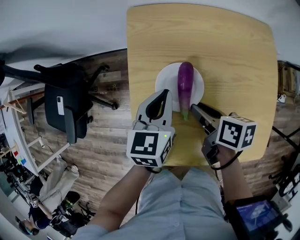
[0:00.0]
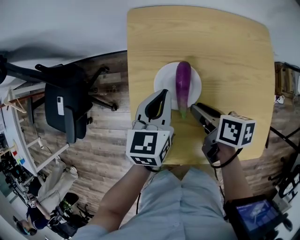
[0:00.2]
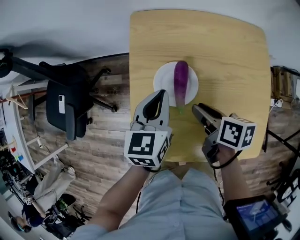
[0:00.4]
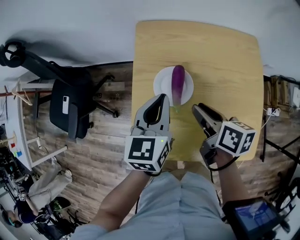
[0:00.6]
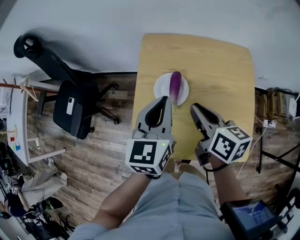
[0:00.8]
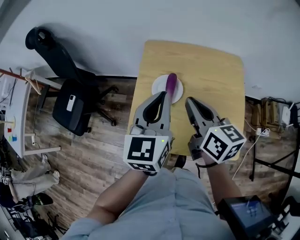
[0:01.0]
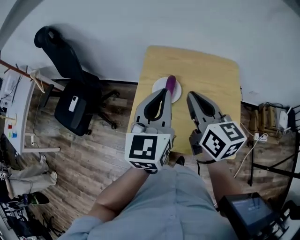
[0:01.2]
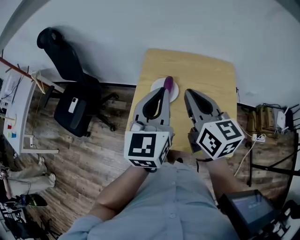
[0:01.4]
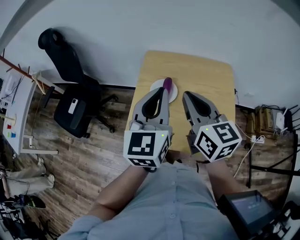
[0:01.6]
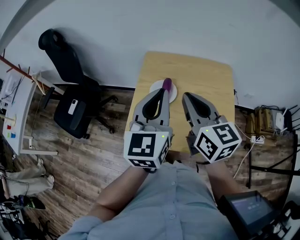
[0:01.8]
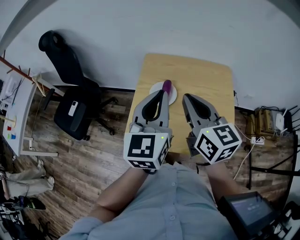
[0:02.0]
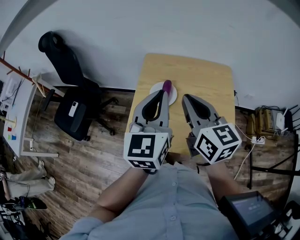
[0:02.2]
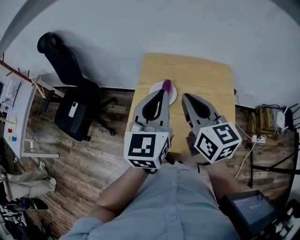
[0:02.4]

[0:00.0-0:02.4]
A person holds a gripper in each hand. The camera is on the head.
0:00.0 to 0:01.2: The left gripper is displaced upward by some 30 cm, and changes its angle by roughly 30 degrees.

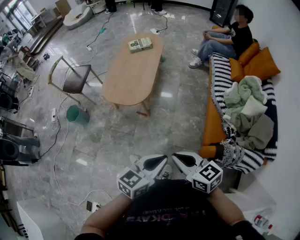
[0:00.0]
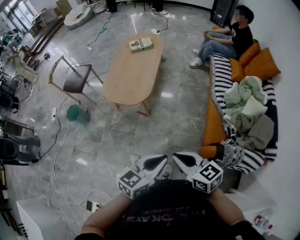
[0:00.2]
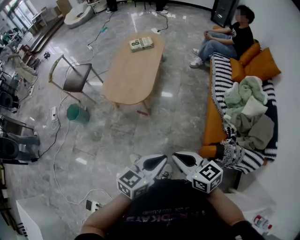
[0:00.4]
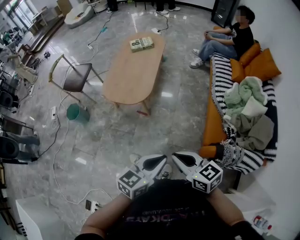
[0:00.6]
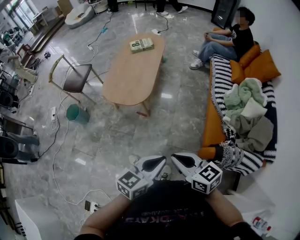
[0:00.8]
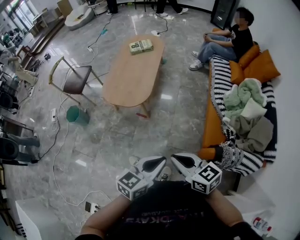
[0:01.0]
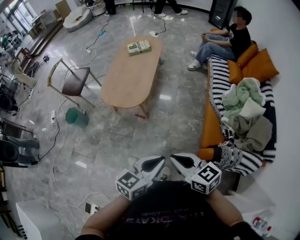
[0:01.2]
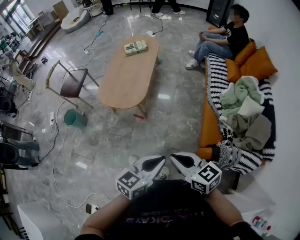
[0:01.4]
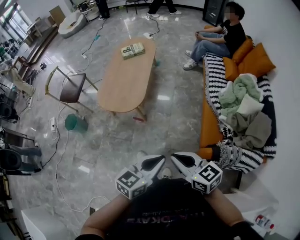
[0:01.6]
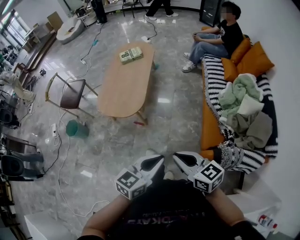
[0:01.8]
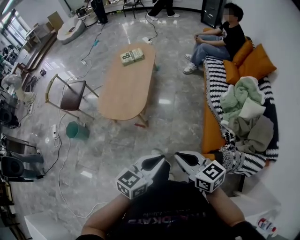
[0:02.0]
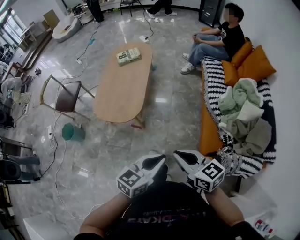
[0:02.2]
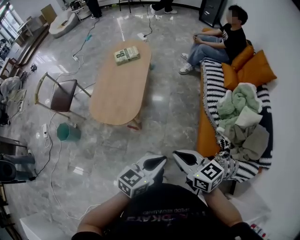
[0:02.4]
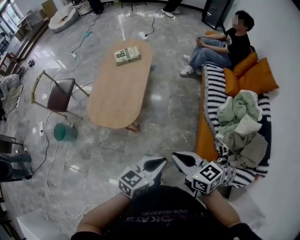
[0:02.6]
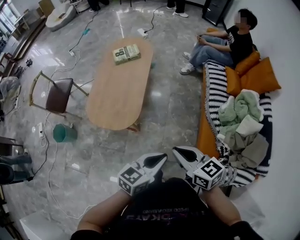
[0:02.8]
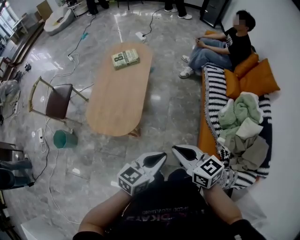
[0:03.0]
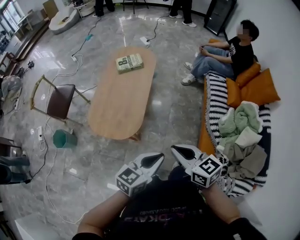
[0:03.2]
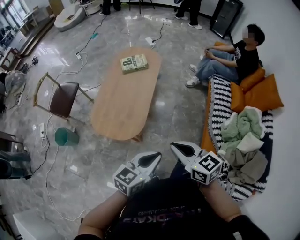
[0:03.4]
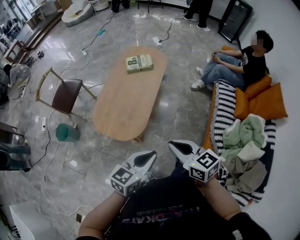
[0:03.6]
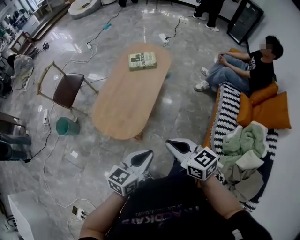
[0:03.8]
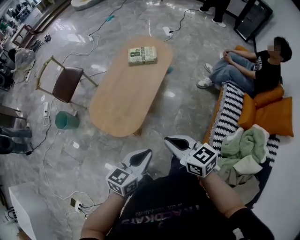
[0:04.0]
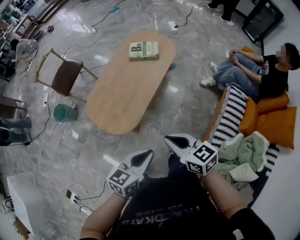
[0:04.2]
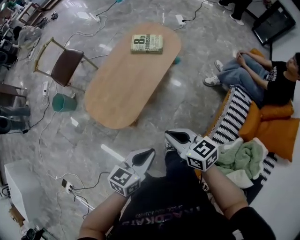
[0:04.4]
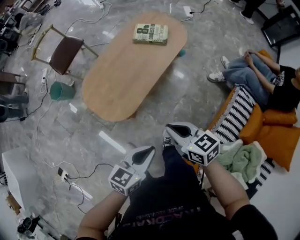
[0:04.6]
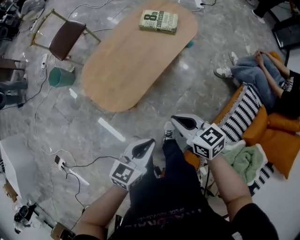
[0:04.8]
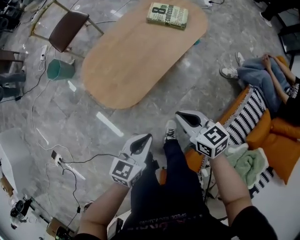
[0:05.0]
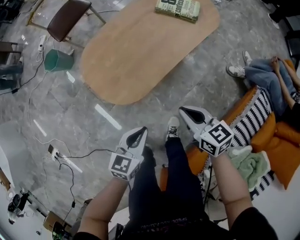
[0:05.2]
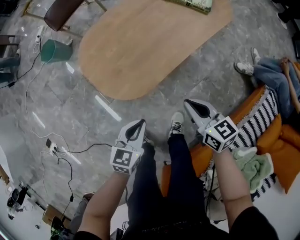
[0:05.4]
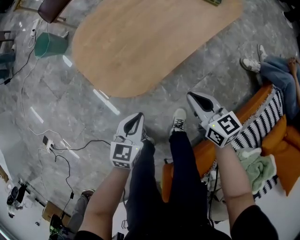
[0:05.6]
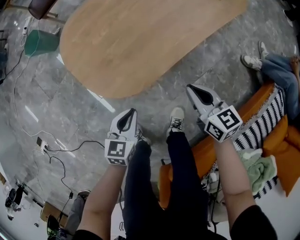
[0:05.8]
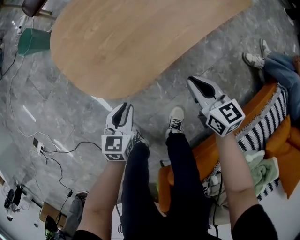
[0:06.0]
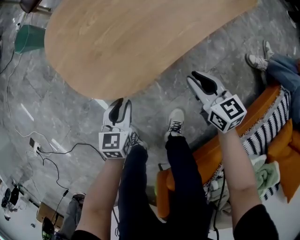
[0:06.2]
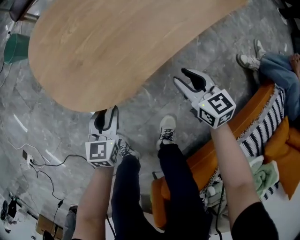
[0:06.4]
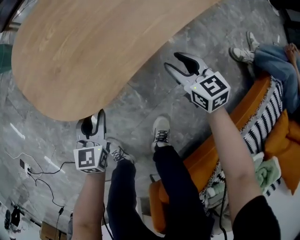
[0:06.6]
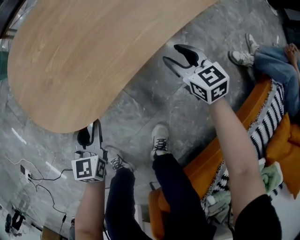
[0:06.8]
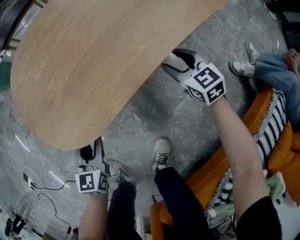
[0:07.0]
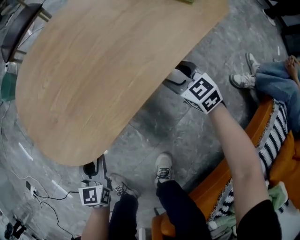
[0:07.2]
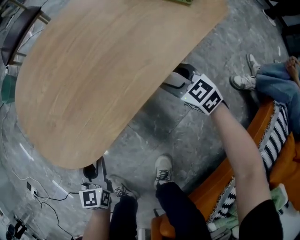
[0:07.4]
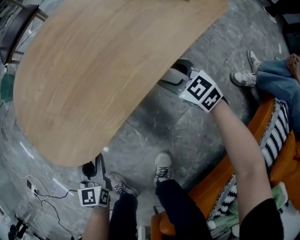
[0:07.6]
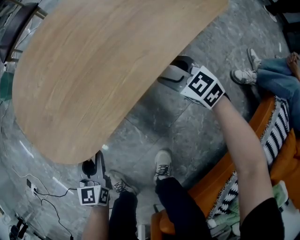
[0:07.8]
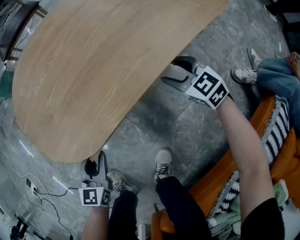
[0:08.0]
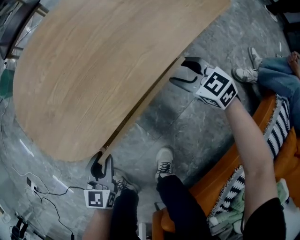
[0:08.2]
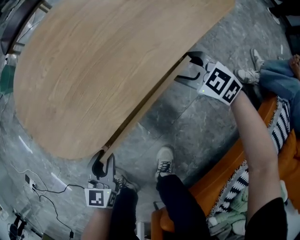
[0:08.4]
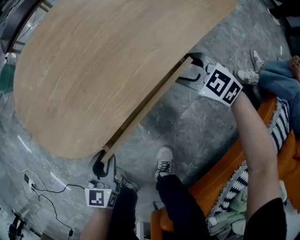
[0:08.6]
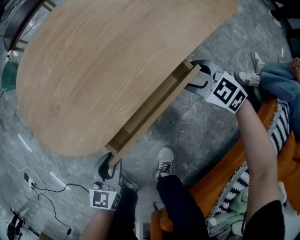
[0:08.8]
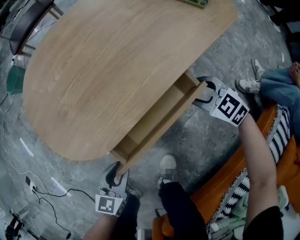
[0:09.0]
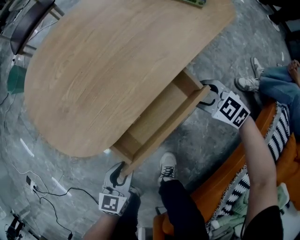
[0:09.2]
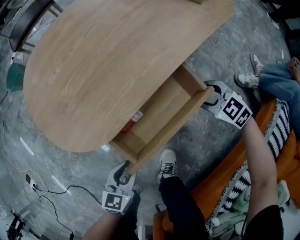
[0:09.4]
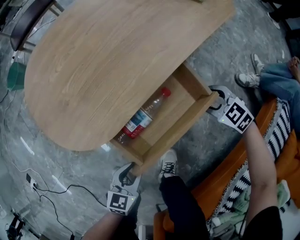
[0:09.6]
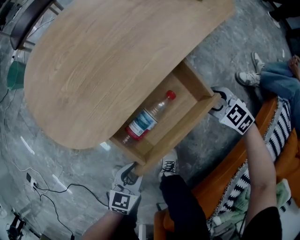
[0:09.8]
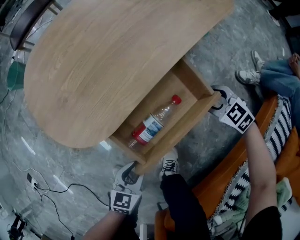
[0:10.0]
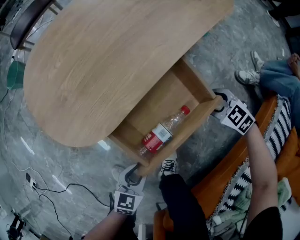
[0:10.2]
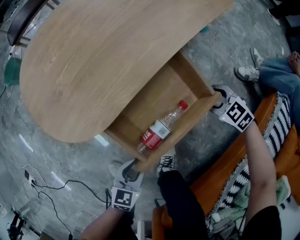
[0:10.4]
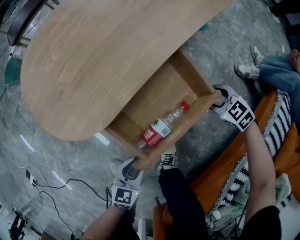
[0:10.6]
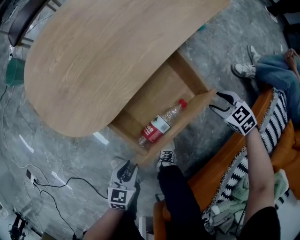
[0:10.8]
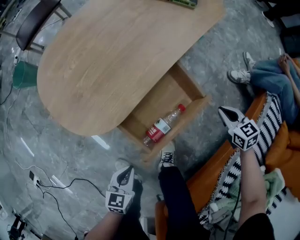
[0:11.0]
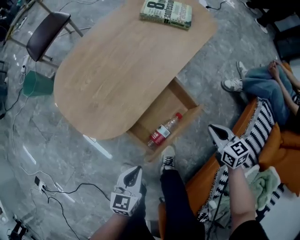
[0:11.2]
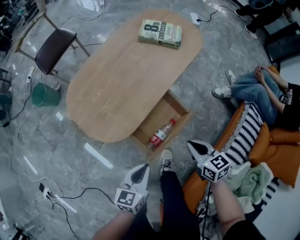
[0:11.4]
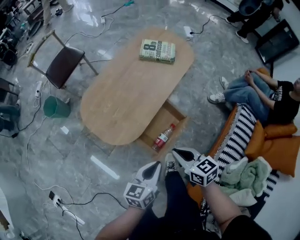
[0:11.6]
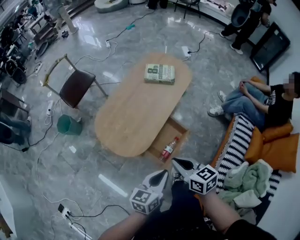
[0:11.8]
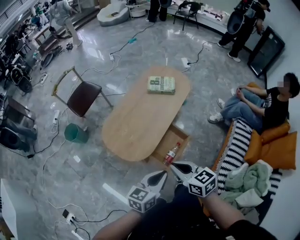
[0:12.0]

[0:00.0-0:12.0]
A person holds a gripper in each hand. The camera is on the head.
0:00.0 to 0:01.6: The grippers move only a little.
0:01.6 to 0:03.0: The two grippers go approximately 30 cm forward.
0:03.0 to 0:04.4: The right gripper ends up approximately 30 cm from where it was, and changes its angle by roughly 30 degrees. The left gripper moves approximately 25 cm, and swivels approximately 30 degrees.
0:04.4 to 0:06.0: The grippers both shift downward by about 50 cm. The left gripper turns by roughly 40 degrees.
0:06.0 to 0:07.6: The right gripper is displaced downward, forward and to the right by approximately 25 cm, changes its angle by about 30 degrees, and opens up, while the left gripper heads downward, covering approximately 5 cm.
0:07.6 to 0:09.0: The grippers both shift backward by roughly 10 cm.
0:09.0 to 0:10.4: The left gripper shifts about 10 cm backward. The right gripper travels backward and to the right by roughly 10 cm.
0:10.4 to 0:12.0: The right gripper shifts about 70 cm upward and to the left, rotates some 50 degrees, and closes its fingers; the left gripper travels upward by roughly 60 cm, changes its angle by roughly 20 degrees, and closes its fingers.

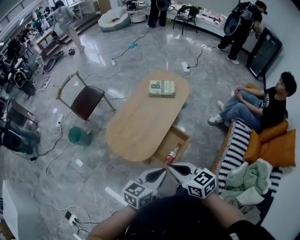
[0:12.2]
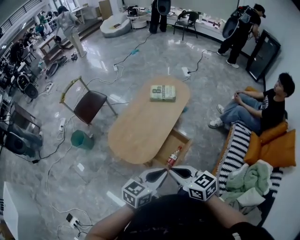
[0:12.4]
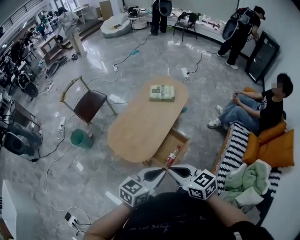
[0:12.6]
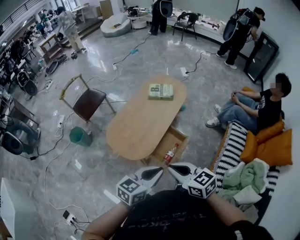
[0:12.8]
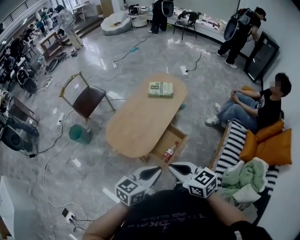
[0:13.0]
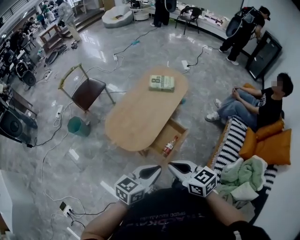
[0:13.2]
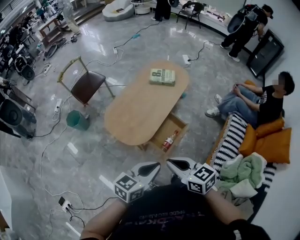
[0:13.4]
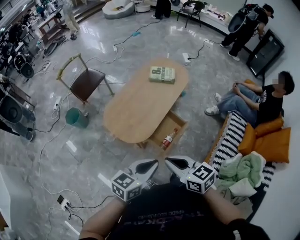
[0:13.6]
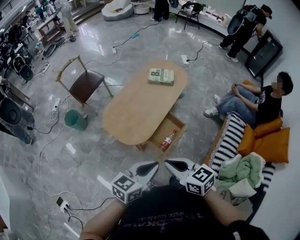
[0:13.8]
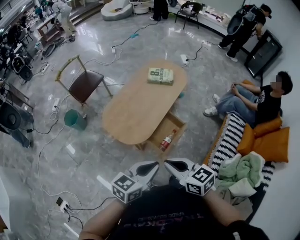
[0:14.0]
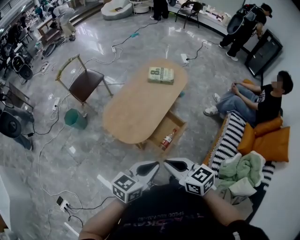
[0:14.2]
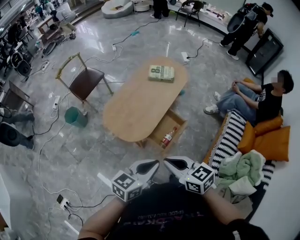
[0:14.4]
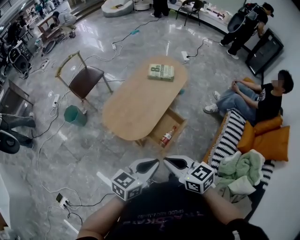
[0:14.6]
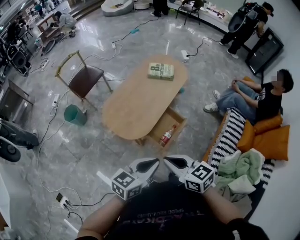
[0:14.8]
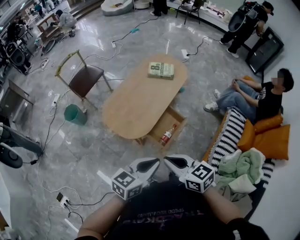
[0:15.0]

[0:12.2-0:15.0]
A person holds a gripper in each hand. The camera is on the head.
0:12.2 to 0:13.6: Both grippers move backward, about 5 cm.
0:13.6 to 0:15.0: The grippers make only small movements.

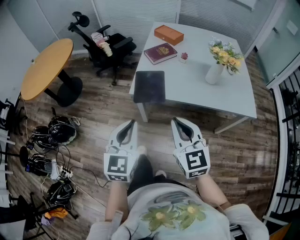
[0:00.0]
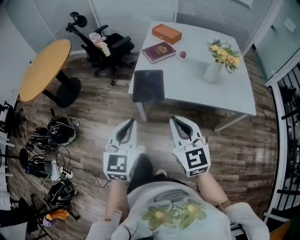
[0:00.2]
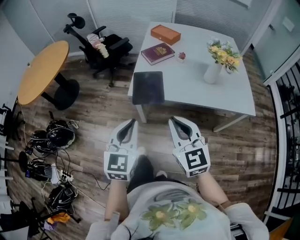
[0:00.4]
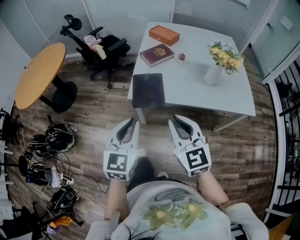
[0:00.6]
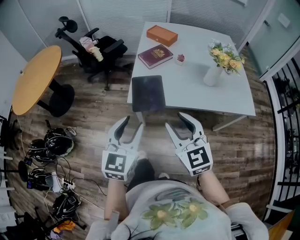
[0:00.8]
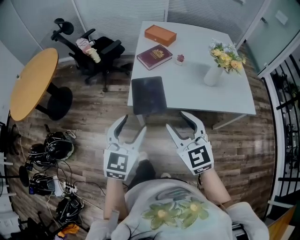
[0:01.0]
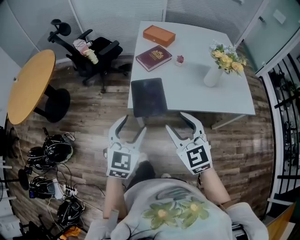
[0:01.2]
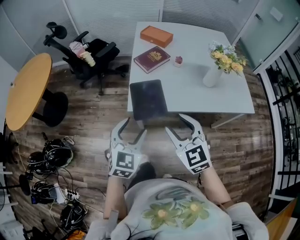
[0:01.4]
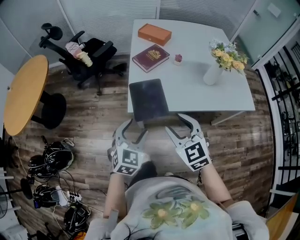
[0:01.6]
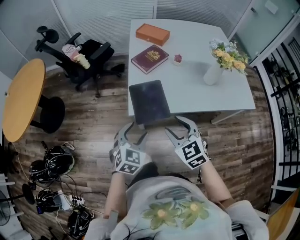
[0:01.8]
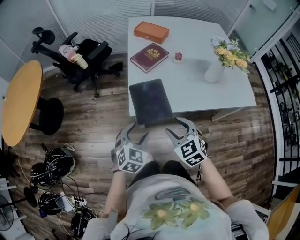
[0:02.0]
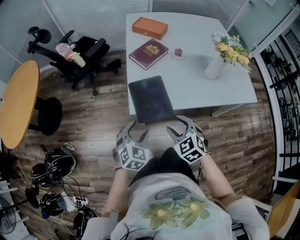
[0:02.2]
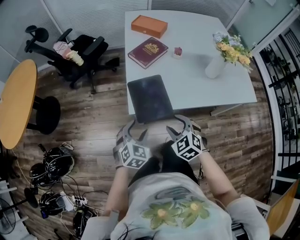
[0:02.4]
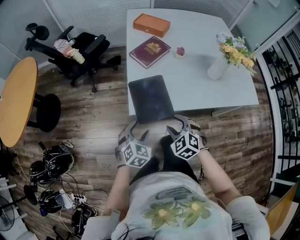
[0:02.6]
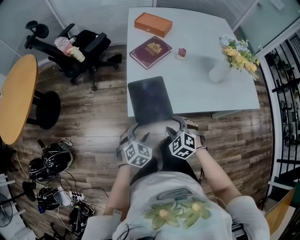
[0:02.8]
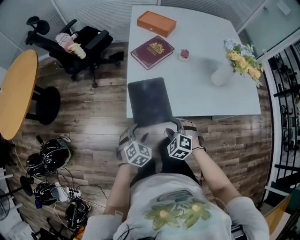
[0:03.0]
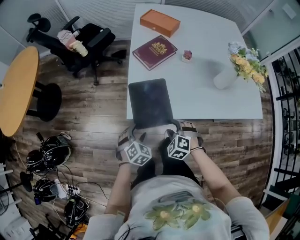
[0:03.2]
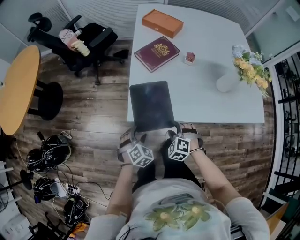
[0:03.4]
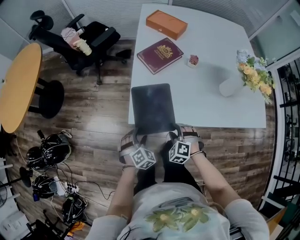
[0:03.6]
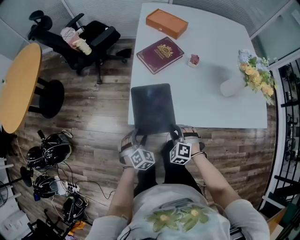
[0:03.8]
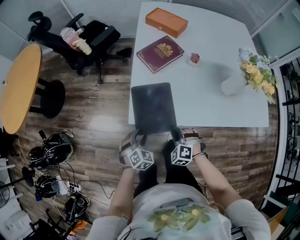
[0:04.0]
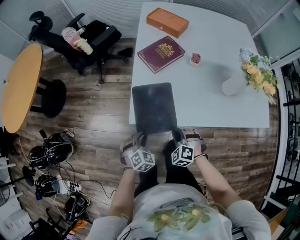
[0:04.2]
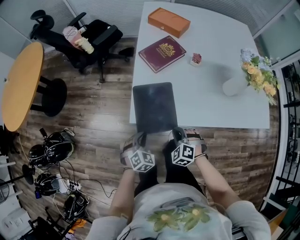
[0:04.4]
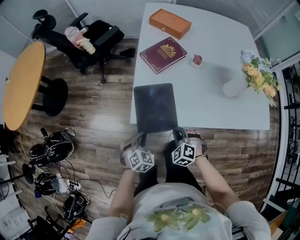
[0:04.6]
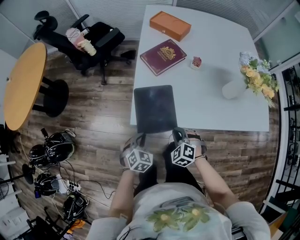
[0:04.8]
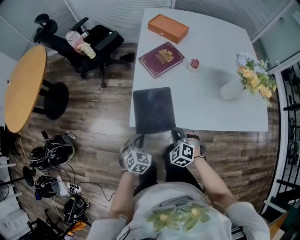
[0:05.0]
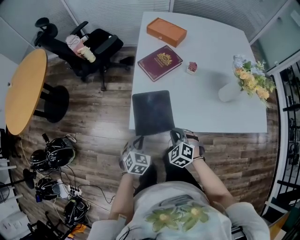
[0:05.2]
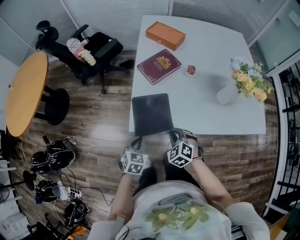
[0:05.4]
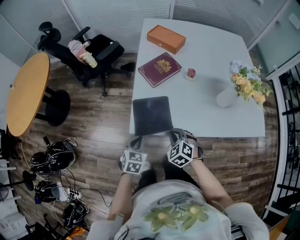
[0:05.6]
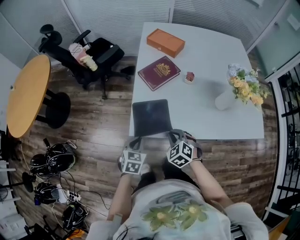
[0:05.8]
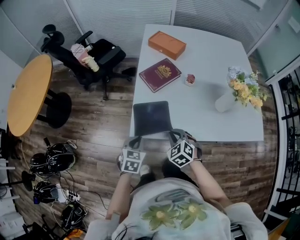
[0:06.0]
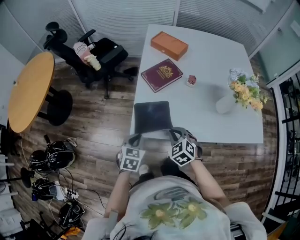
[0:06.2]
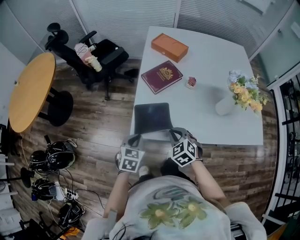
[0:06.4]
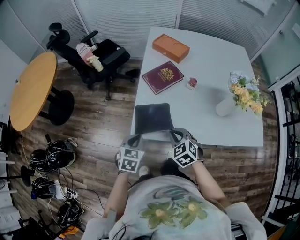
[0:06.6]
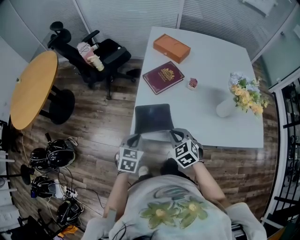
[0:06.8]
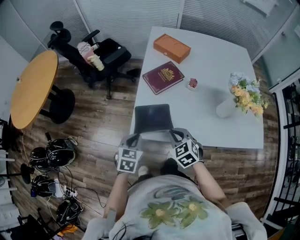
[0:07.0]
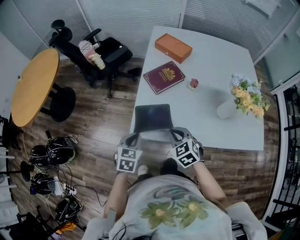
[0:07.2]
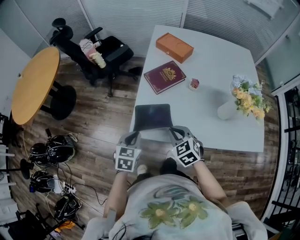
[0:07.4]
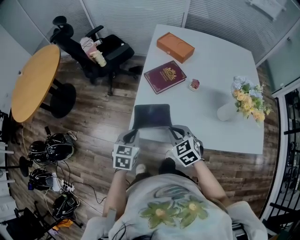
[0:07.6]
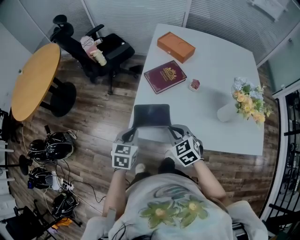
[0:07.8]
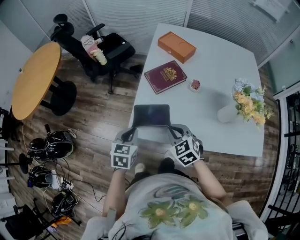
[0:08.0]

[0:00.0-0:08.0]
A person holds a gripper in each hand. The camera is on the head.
0:00.0 to 0:01.6: The left gripper shifts approximately 20 cm forward and downward, changes its angle by some 30 degrees, and opens up; the right gripper travels forward, to the left and downward by some 15 cm, and opens up.
0:01.6 to 0:03.2: The grippers both shift downward by about 25 cm. The left gripper turns by some 20 degrees, while the right gripper tilts its fingers about 30 degrees downward.
0:03.2 to 0:04.8: The right gripper closes its fingers, while the left gripper closes its fingers.
0:04.8 to 0:06.4: The left gripper heads upward, covering about 10 cm, and changes its angle by approximately 20 degrees. Meanwhile the right gripper moves upward and forward, roughly 10 cm.
0:06.4 to 0:08.0: There are only small adjustments of the grippers.
